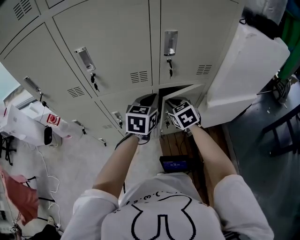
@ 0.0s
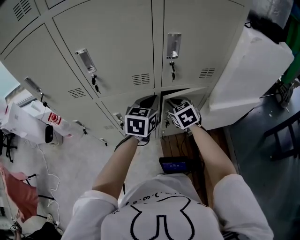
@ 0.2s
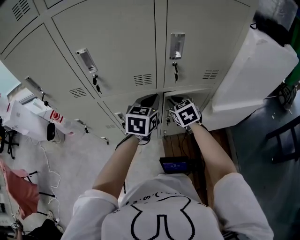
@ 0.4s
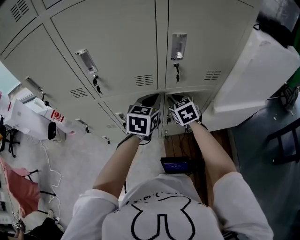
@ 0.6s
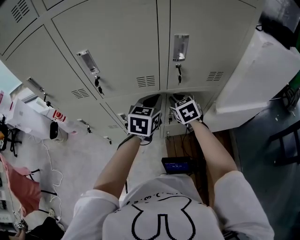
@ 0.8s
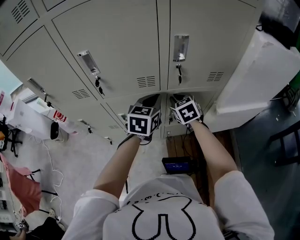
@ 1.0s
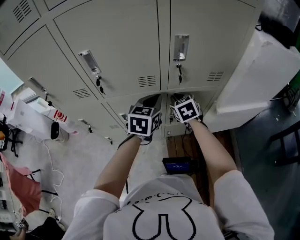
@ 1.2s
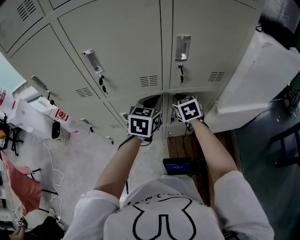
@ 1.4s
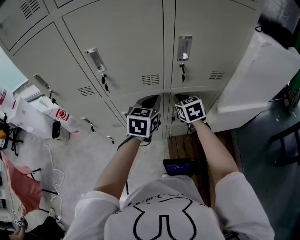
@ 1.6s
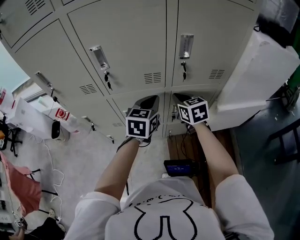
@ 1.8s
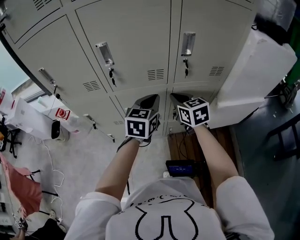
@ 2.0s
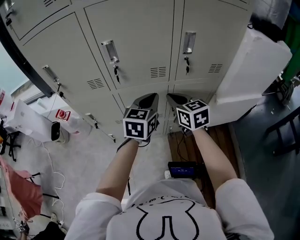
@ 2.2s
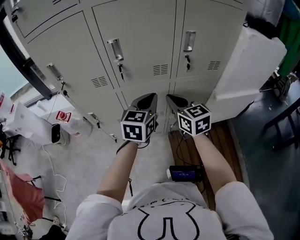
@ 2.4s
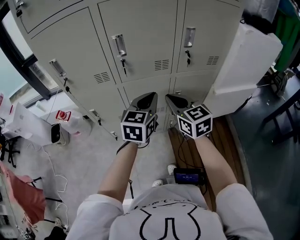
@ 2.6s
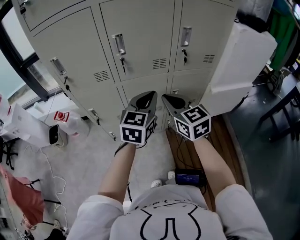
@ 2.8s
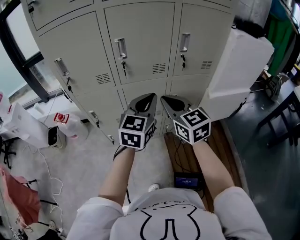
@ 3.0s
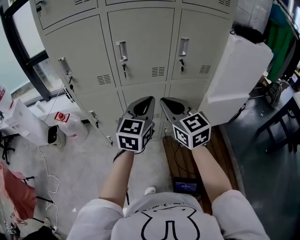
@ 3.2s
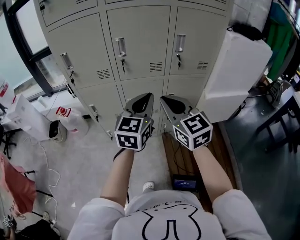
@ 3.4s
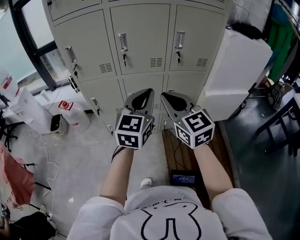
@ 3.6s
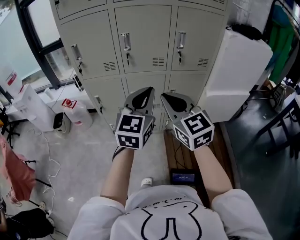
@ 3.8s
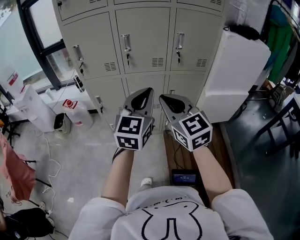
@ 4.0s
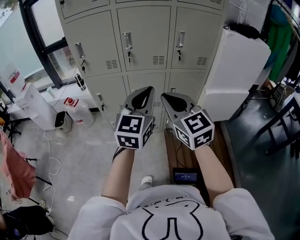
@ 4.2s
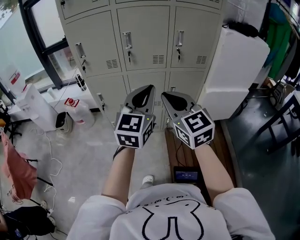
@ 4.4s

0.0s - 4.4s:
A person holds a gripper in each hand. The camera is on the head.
0.0s - 1.4s: The right gripper shifts some 5 cm forward.
1.4s - 3.0s: The grippers both shift backward, upward and to the left by roughly 30 cm. The right gripper turns by some 30 degrees.
3.0s - 4.4s: The left gripper moves backward and upward, roughly 15 cm. Meanwhile the right gripper heads backward, covering approximately 15 cm.

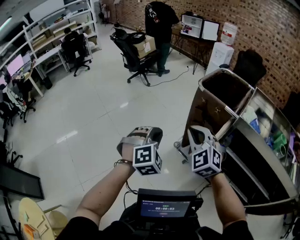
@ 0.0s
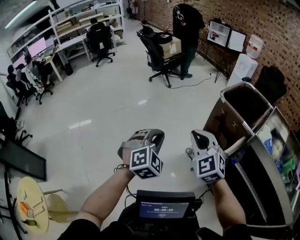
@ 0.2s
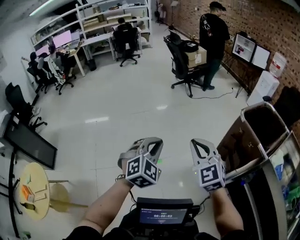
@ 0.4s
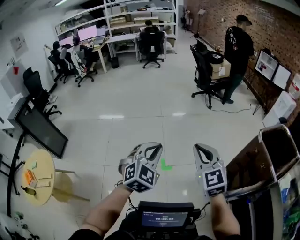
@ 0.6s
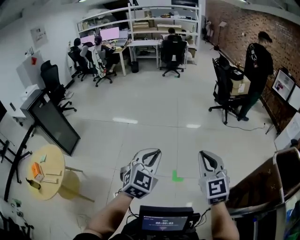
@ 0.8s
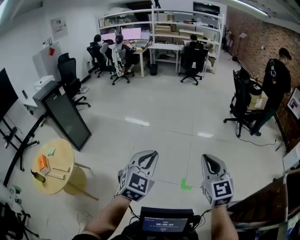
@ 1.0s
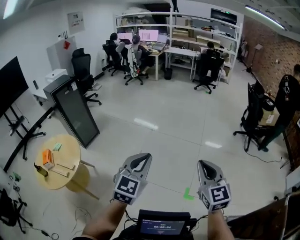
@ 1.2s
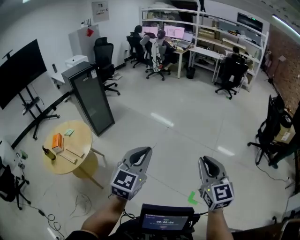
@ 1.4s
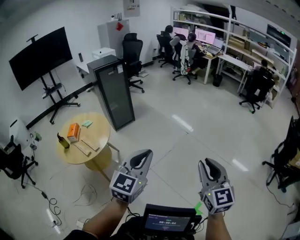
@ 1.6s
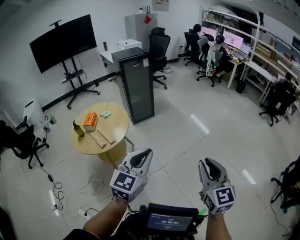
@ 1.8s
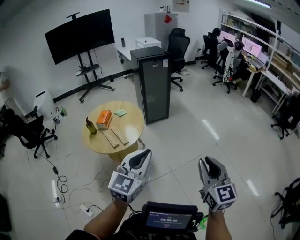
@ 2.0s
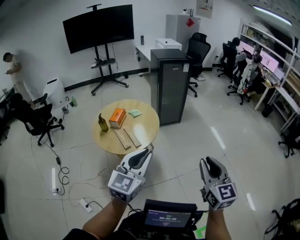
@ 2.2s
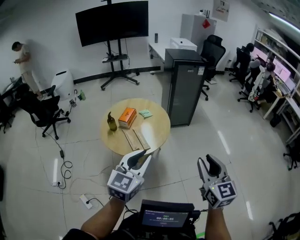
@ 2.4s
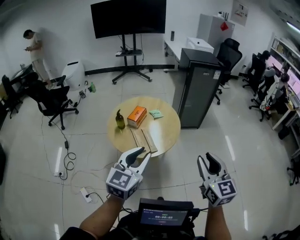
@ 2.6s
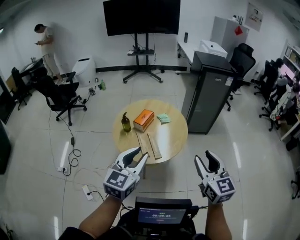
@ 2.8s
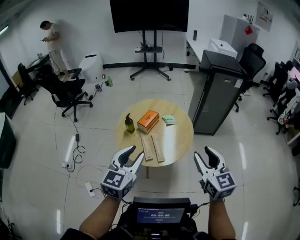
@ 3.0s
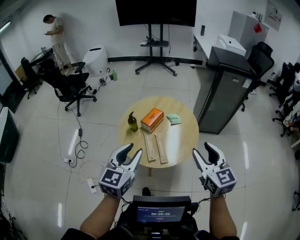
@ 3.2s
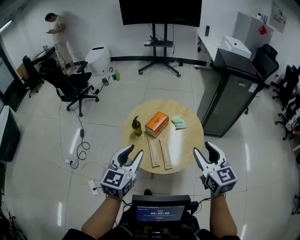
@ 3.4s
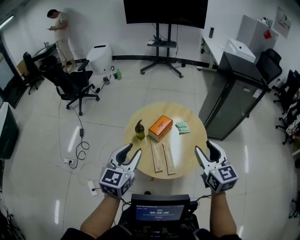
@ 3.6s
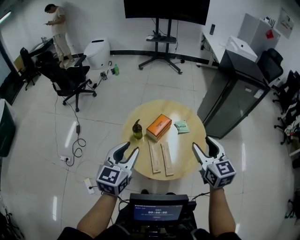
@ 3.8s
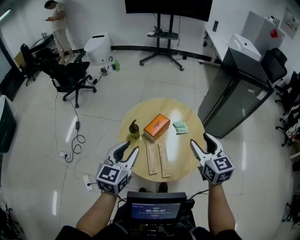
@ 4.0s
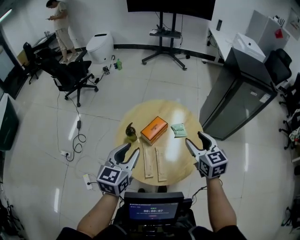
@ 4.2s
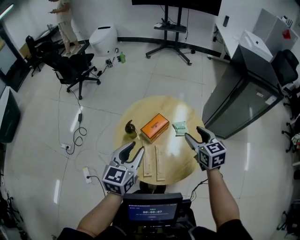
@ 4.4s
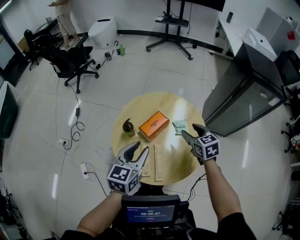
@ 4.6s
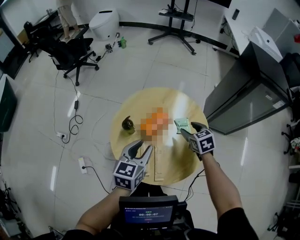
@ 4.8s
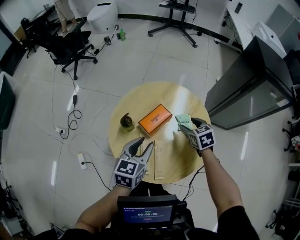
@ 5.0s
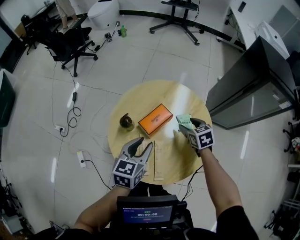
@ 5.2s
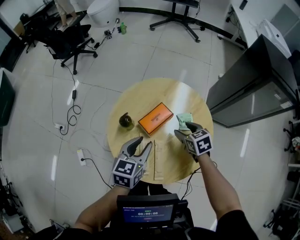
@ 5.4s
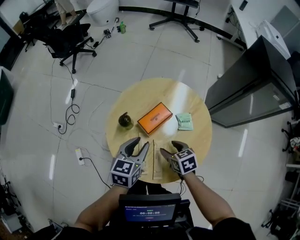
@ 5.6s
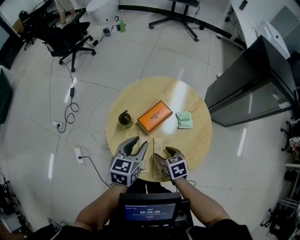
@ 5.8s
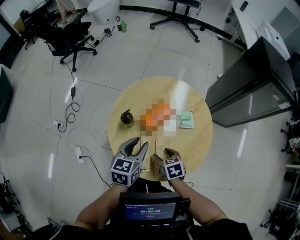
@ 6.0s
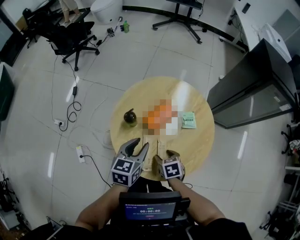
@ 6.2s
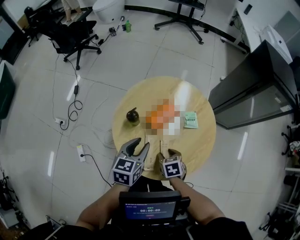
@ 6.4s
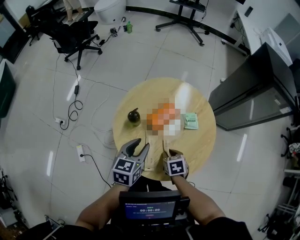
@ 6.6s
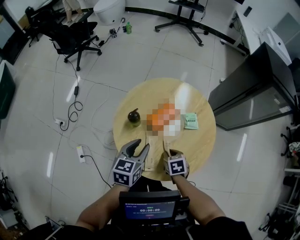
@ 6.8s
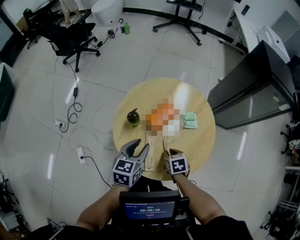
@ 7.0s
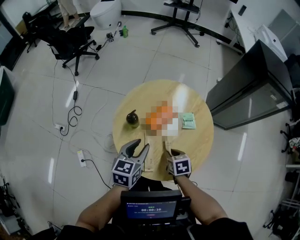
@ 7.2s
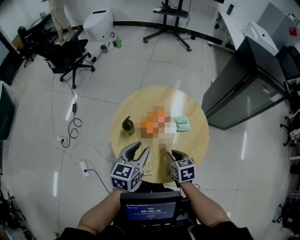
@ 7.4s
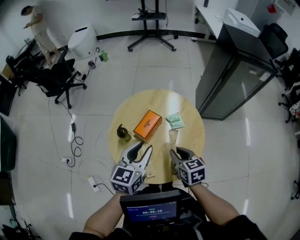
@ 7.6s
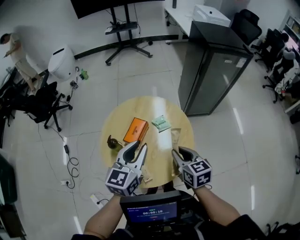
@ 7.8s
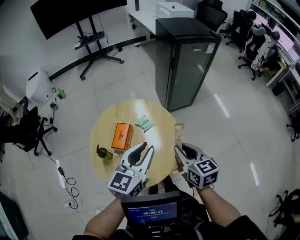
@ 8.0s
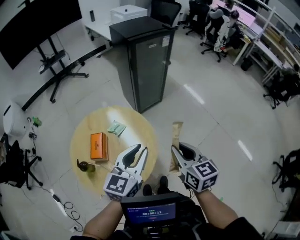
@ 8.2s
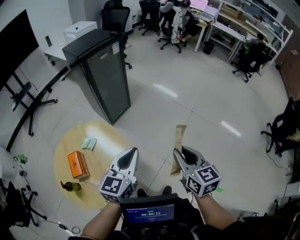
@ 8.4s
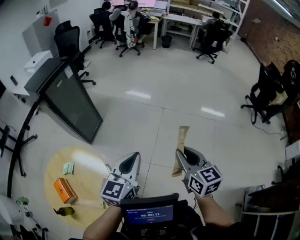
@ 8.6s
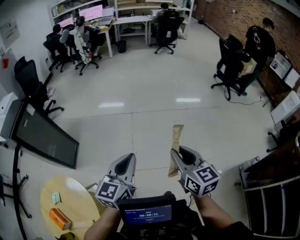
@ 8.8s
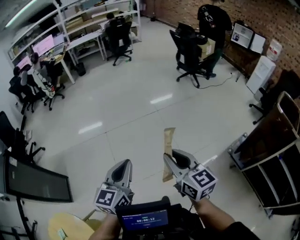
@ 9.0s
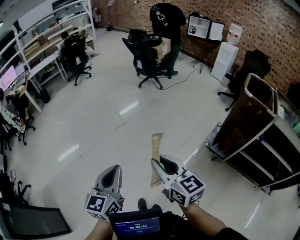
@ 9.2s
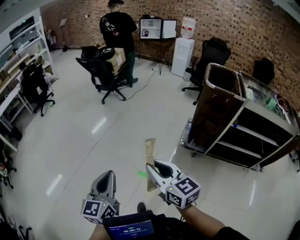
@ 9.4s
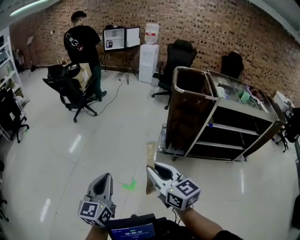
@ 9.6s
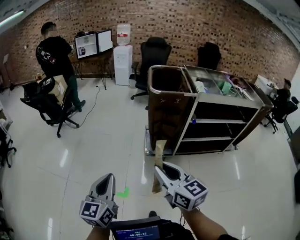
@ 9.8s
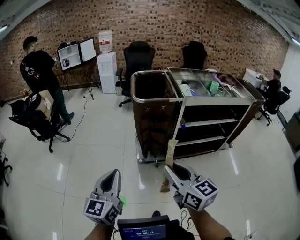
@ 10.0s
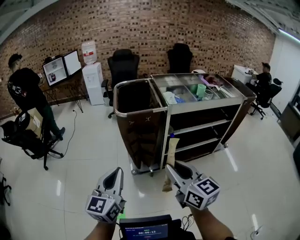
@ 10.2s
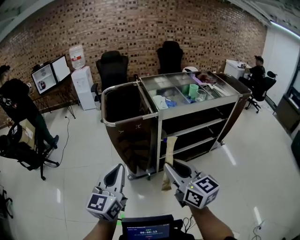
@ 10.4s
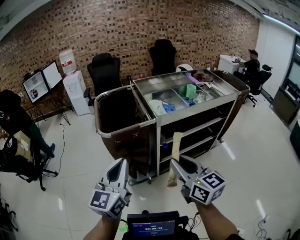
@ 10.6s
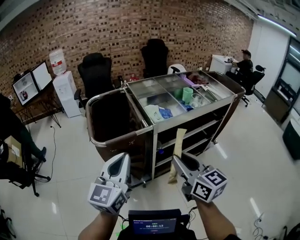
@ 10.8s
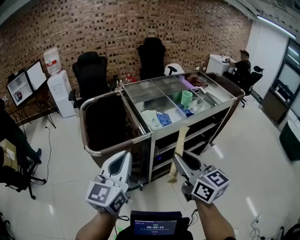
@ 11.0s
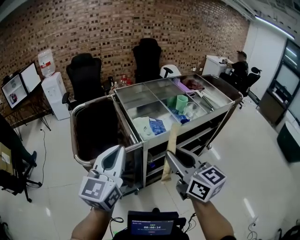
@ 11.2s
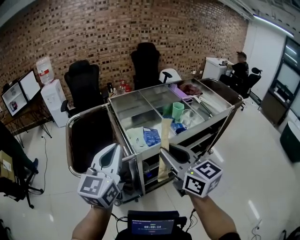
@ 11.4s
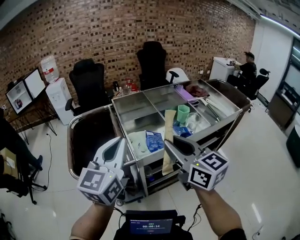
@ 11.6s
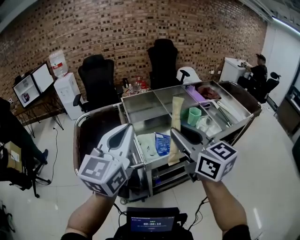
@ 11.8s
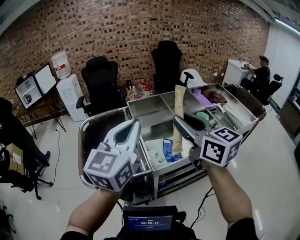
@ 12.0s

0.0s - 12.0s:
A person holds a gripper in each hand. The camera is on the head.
0.0s - 1.6s: The pair of grippers is taken some 90 cm. The left gripper turns by about 100 degrees; the right gripper rotates approximately 80 degrees.
1.6s - 3.0s: Both grippers are carried approximately 90 cm. The right gripper rotates approximately 50 degrees, and opens up; the left gripper turns by about 50 degrees, and opens.
3.0s - 4.4s: The two grippers travel together, forward, roughly 50 cm. The right gripper turns by roughly 20 degrees.
4.4s - 6.0s: The right gripper shifts approximately 35 cm downward and to the left, and swivels about 30 degrees. Meanwhile the left gripper shifts about 25 cm downward and forward.
6.0s - 7.6s: The right gripper goes roughly 20 cm upward and to the right, turns by some 30 degrees, and closes, while the left gripper heads upward, to the right and backward, covering approximately 15 cm.
7.6s - 9.0s: The two grippers travel together, approximately 1.5 m. The right gripper changes its angle by approximately 120 degrees, while the left gripper changes its angle by approximately 110 degrees, and closes.
9.0s - 10.4s: The pair of grippers is taken roughly 1 m. The right gripper rotates roughly 80 degrees; the left gripper swivels approximately 80 degrees.
10.4s - 12.0s: The two grippers travel together, forward, about 80 cm.

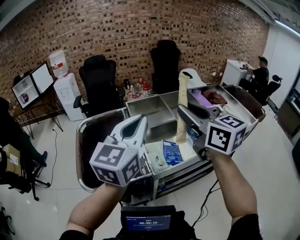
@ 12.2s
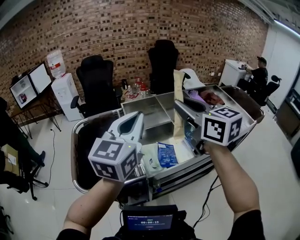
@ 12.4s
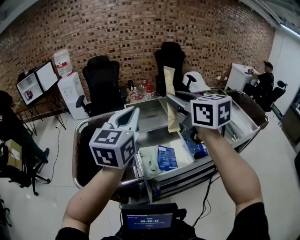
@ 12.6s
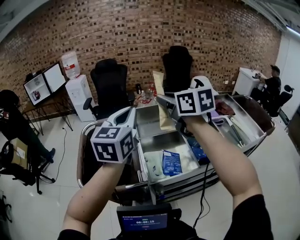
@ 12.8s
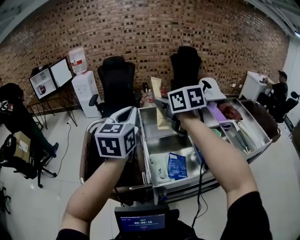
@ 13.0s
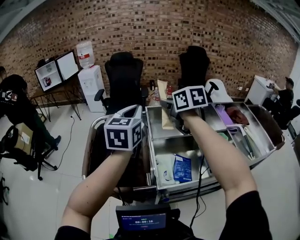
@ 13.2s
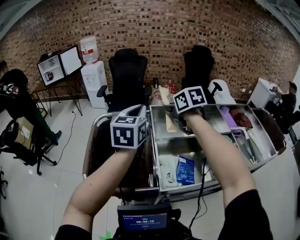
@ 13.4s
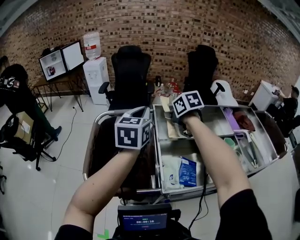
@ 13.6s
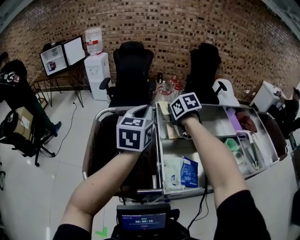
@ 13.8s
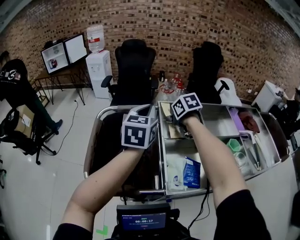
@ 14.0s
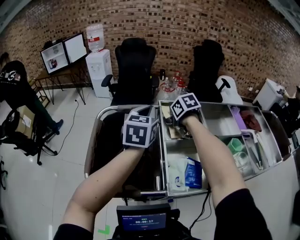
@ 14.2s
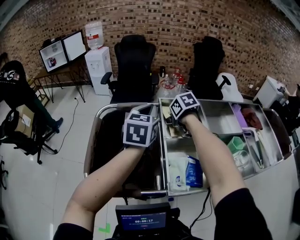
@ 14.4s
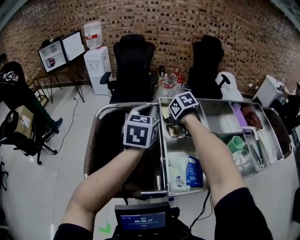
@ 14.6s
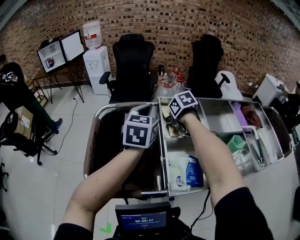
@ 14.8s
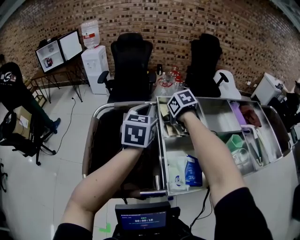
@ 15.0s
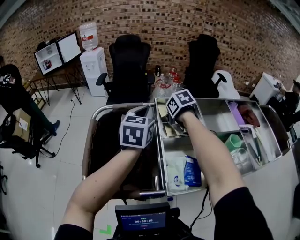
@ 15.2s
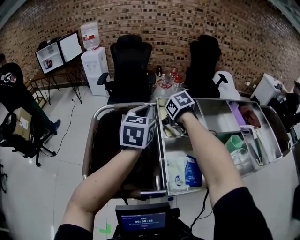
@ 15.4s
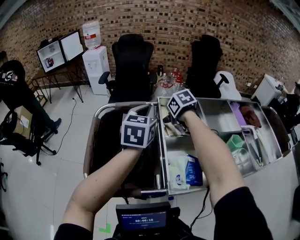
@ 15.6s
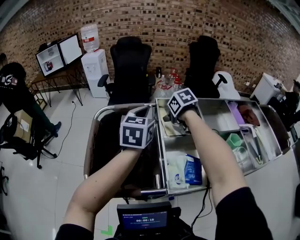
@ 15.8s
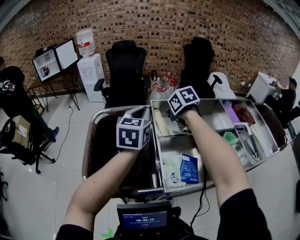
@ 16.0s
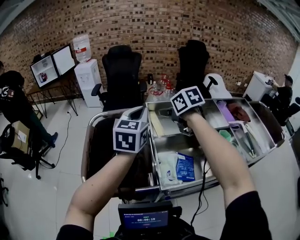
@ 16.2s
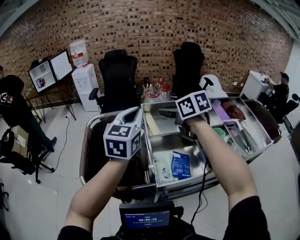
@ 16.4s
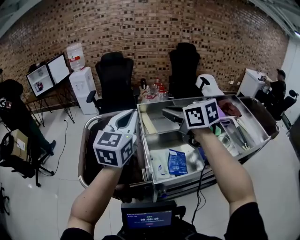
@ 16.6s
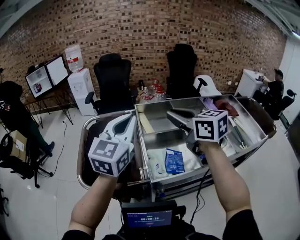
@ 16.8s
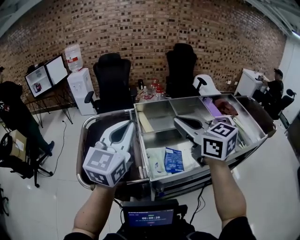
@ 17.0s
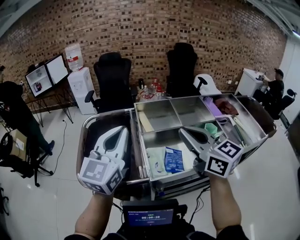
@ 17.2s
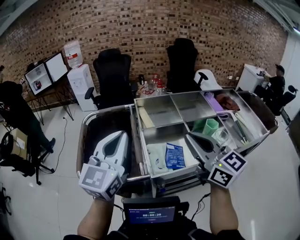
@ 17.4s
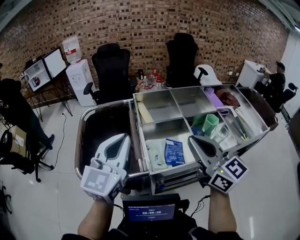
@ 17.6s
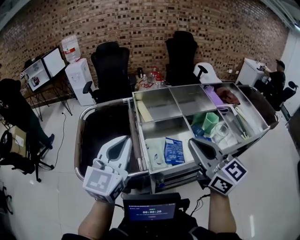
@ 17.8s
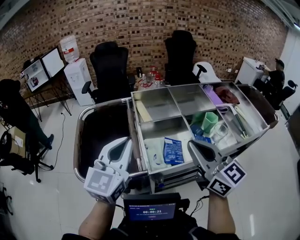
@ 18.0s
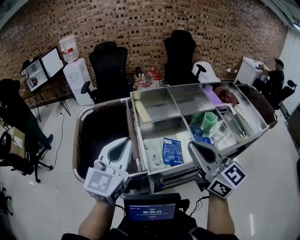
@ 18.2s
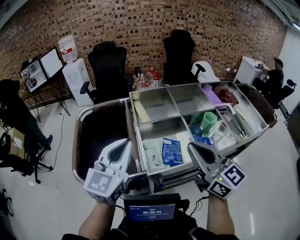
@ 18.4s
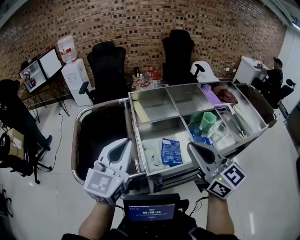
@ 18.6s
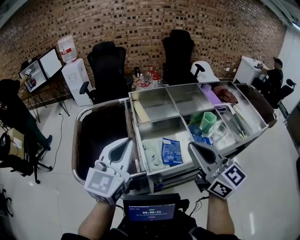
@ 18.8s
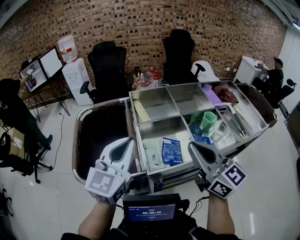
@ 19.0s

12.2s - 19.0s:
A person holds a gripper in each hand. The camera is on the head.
12.2s - 13.6s: The right gripper travels forward and downward by about 35 cm, and tilts its fingers some 40 degrees downward. The left gripper heads forward, covering approximately 20 cm, and turns by approximately 30 degrees.
13.6s - 15.0s: The left gripper goes approximately 10 cm downward and forward, while the right gripper heads downward, covering about 10 cm.
15.0s - 16.2s: The left gripper heads backward and upward, covering about 10 cm, while the right gripper shifts approximately 15 cm upward and backward, and changes its angle by some 20 degrees.
16.2s - 17.6s: The grippers both shift backward by approximately 30 cm. The right gripper tips its fingers upward by some 40 degrees, and closes up.
17.6s - 19.0s: There are only small adjustments of the grippers.
